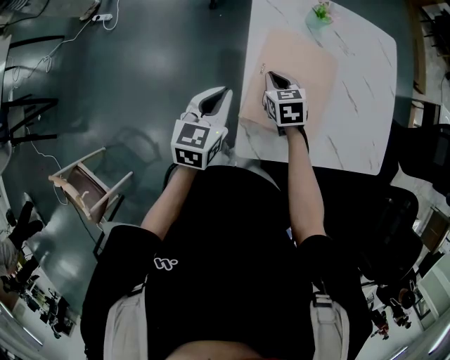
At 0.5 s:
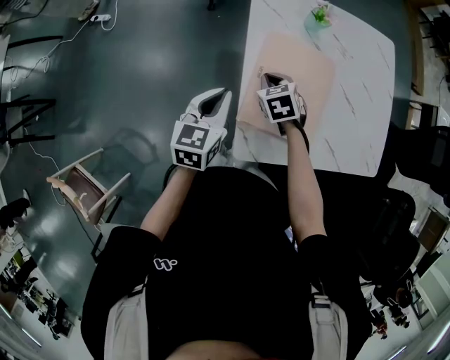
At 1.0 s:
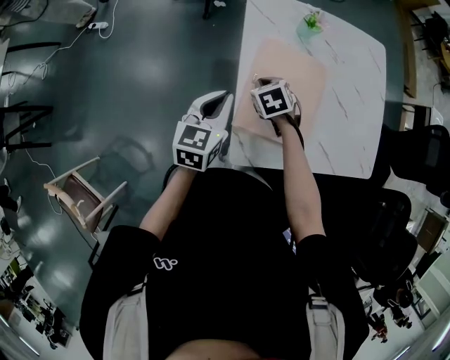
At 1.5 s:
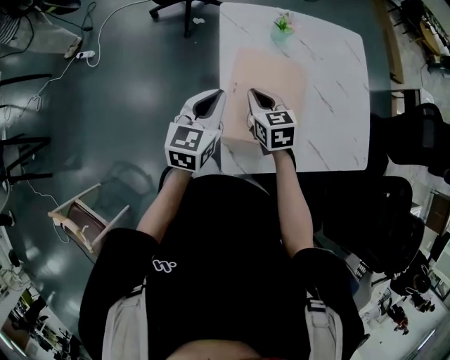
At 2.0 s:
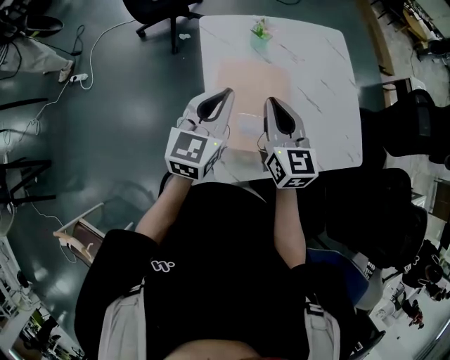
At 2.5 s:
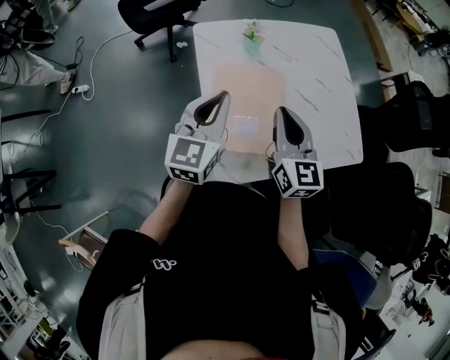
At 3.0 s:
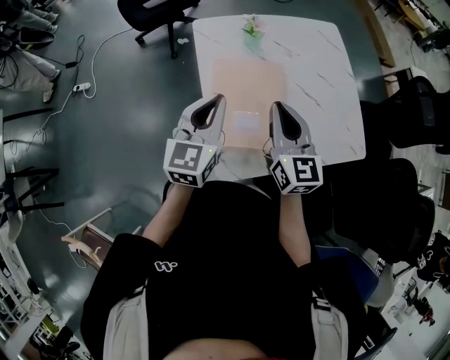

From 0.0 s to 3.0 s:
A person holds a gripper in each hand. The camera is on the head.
From 0.0 s to 1.5 s: The right gripper is displaced upward by approximately 5 cm, while the left gripper ends up about 10 cm from where it was.
From 1.5 s to 3.0 s: The right gripper shifts some 20 cm upward and to the right, and swivels approximately 30 degrees. Meanwhile the left gripper heads upward and to the right, covering approximately 10 cm.

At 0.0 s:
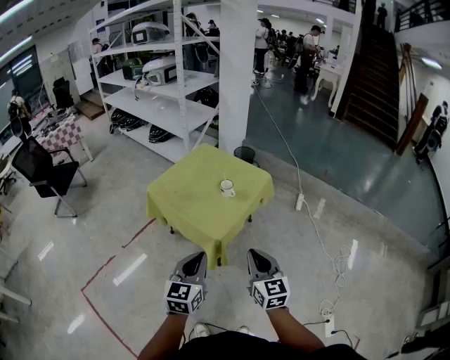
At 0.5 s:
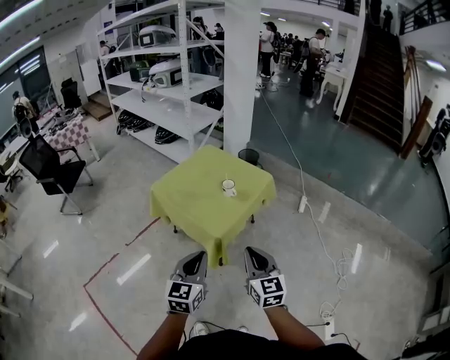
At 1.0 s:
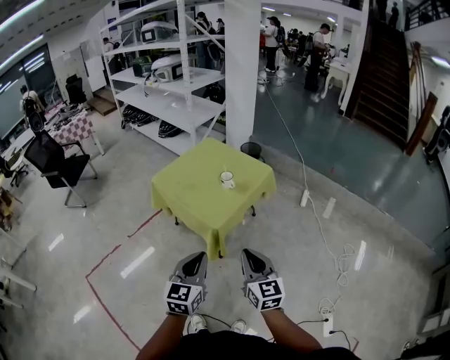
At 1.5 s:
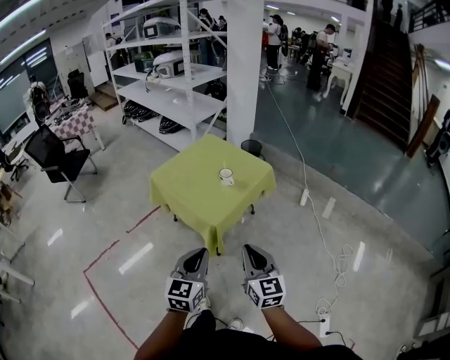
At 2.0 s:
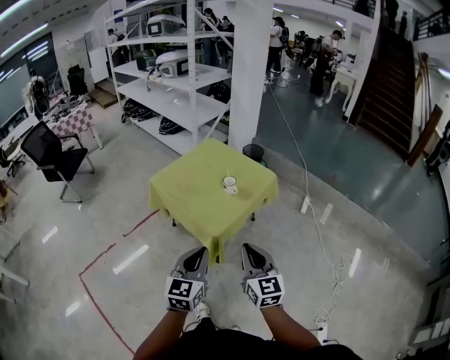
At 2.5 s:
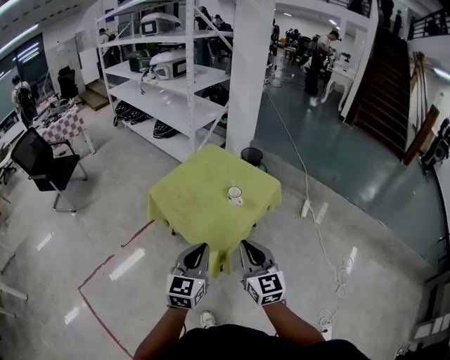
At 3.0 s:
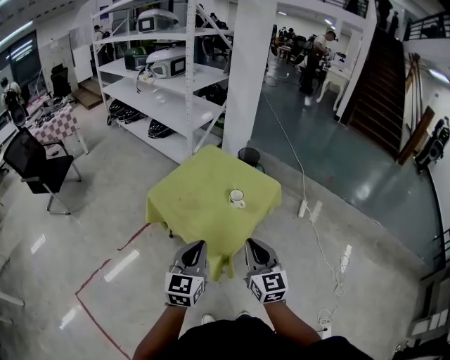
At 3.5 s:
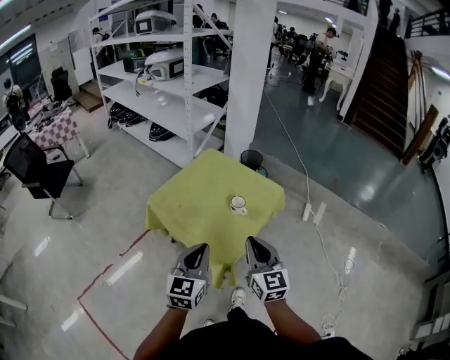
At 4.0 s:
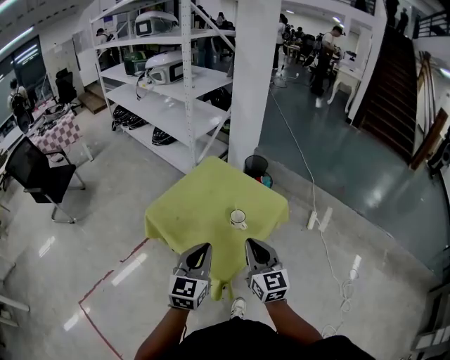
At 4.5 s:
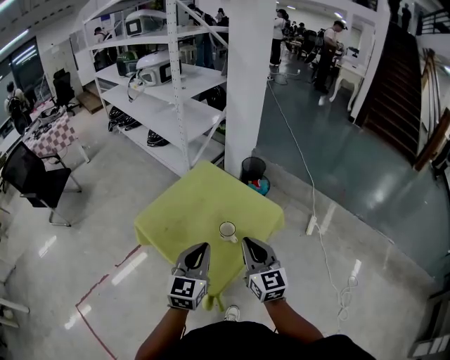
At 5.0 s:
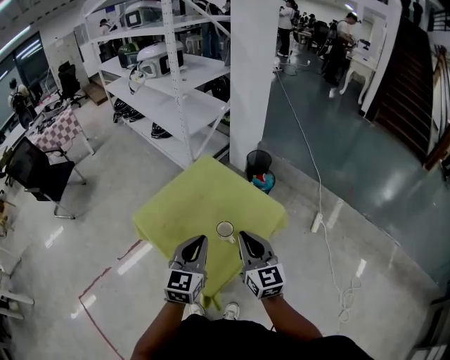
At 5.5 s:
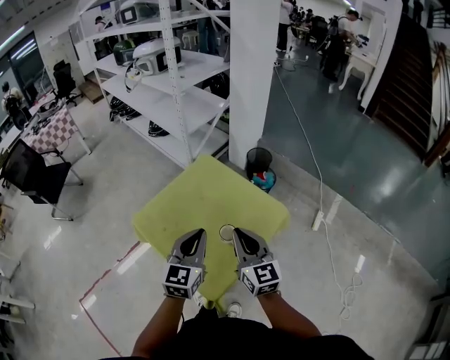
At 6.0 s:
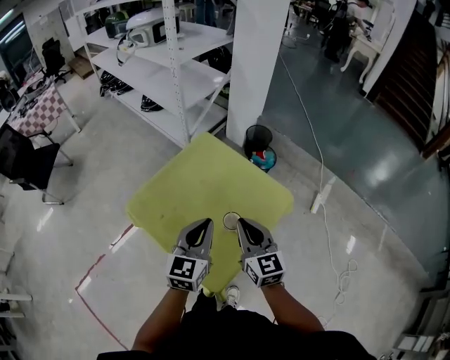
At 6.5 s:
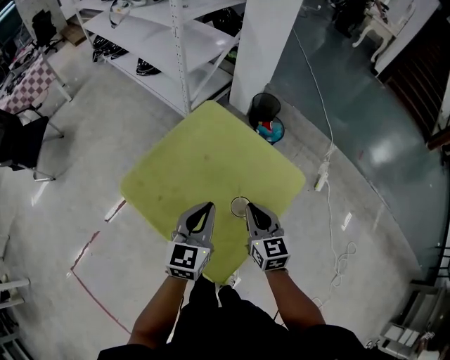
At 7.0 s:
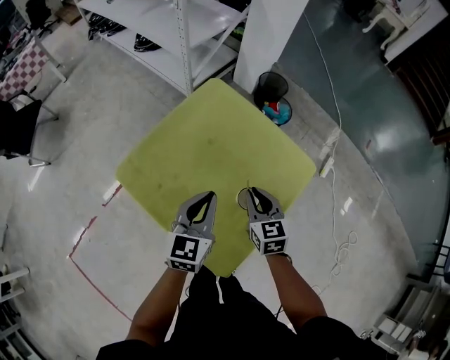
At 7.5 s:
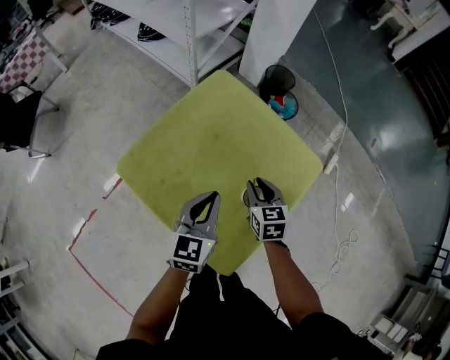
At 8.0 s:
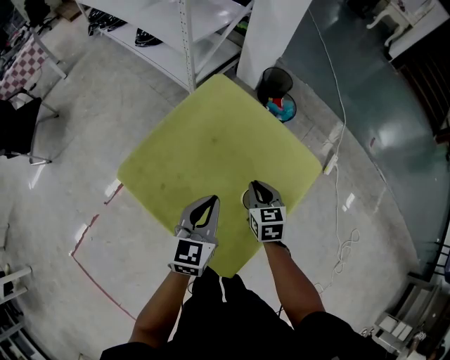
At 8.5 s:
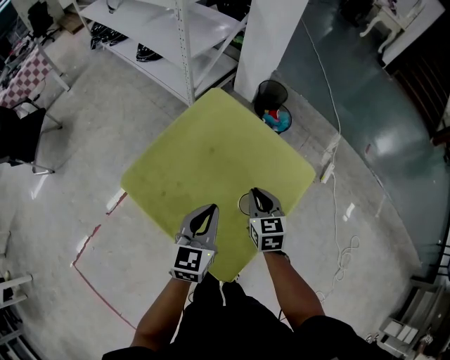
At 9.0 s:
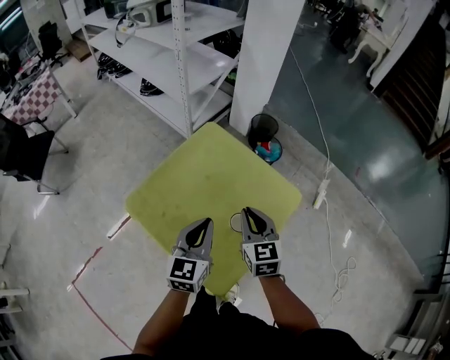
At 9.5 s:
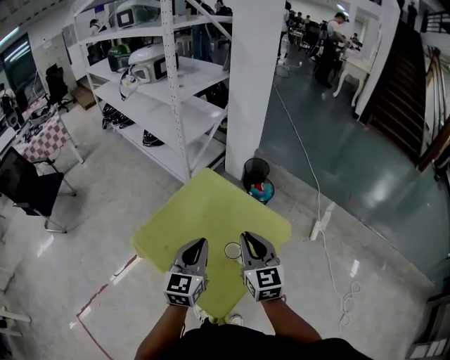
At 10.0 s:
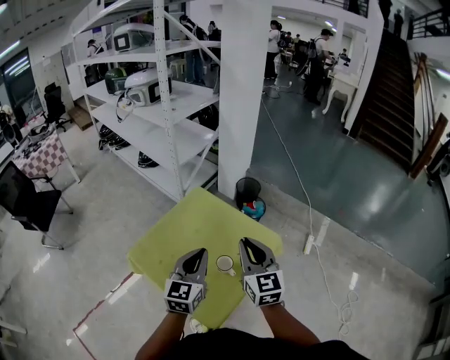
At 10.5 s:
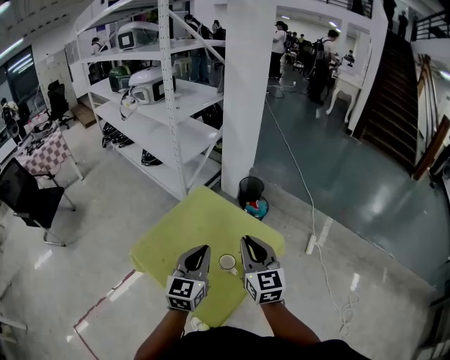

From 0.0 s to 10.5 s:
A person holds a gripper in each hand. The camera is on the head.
From 2.0 s to 4.0 s: Both grippers move forward, approximately 25 cm.
From 4.0 s to 6.5 s: The grippers both shift forward and downward by approximately 25 cm.
From 6.5 s to 8.5 s: The right gripper moves downward and forward, about 10 cm.
From 8.5 s to 10.5 s: The left gripper shifts approximately 15 cm upward. Meanwhile the right gripper shifts some 25 cm upward, and rotates about 30 degrees.

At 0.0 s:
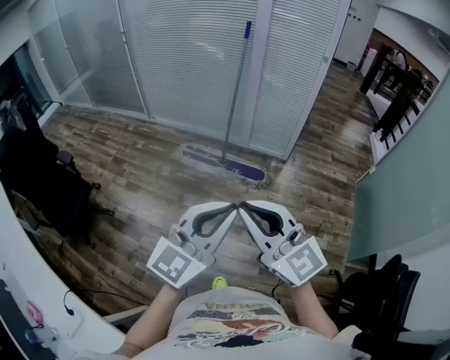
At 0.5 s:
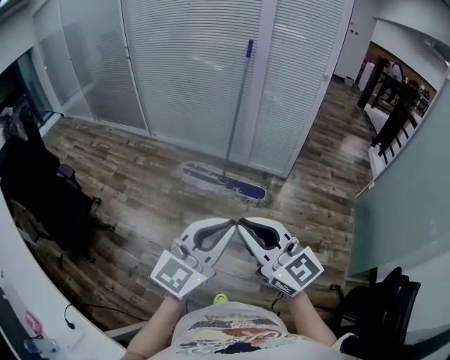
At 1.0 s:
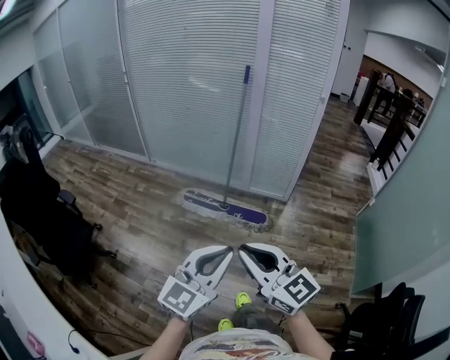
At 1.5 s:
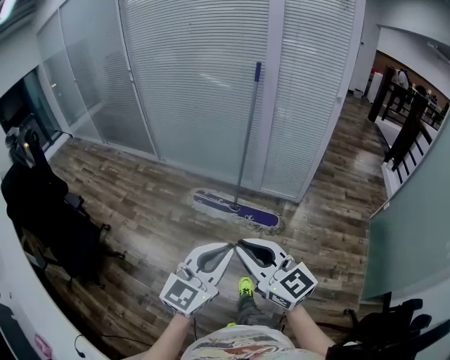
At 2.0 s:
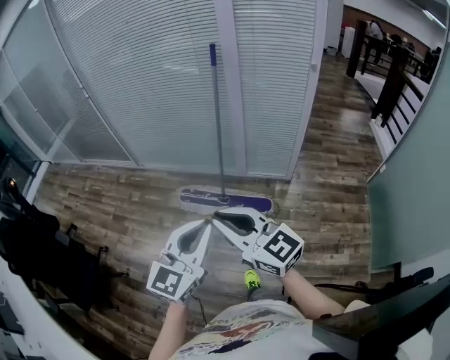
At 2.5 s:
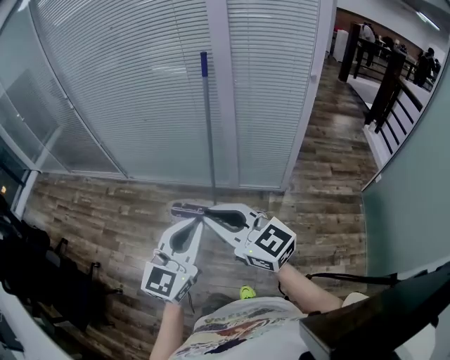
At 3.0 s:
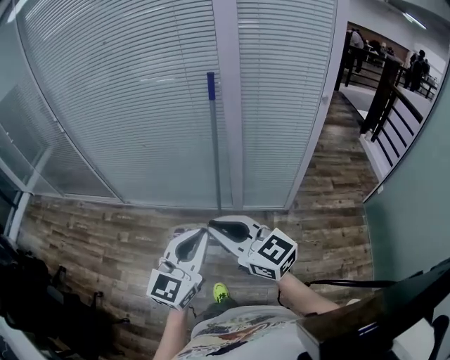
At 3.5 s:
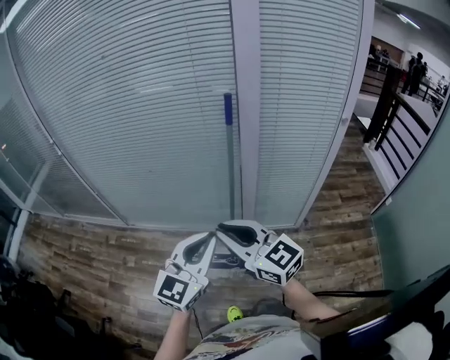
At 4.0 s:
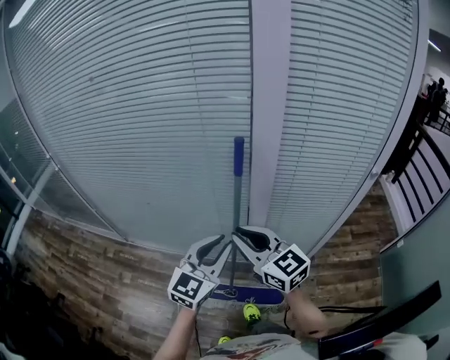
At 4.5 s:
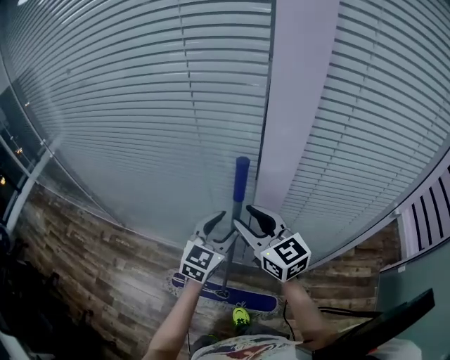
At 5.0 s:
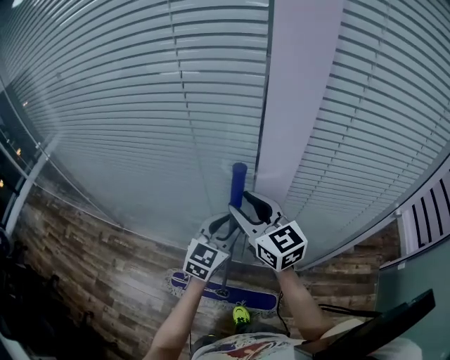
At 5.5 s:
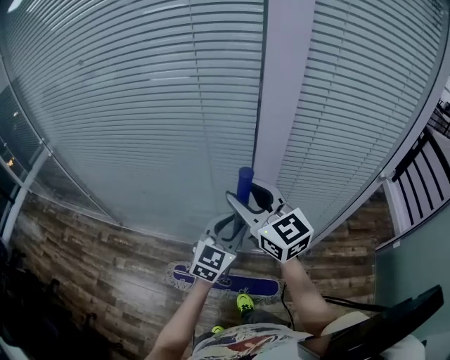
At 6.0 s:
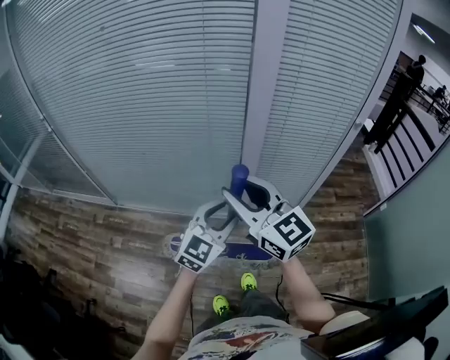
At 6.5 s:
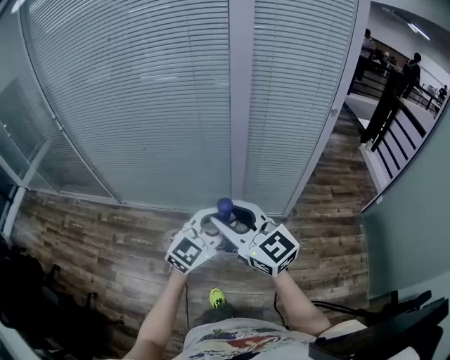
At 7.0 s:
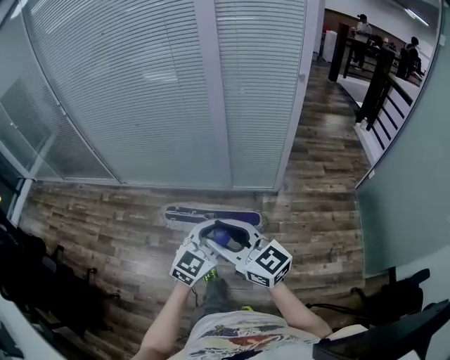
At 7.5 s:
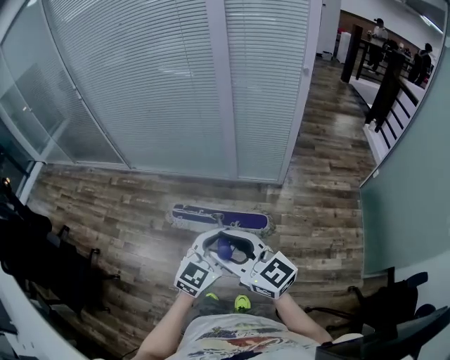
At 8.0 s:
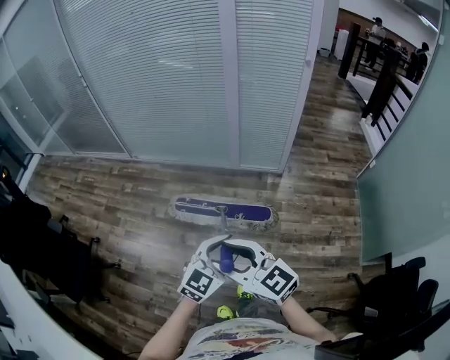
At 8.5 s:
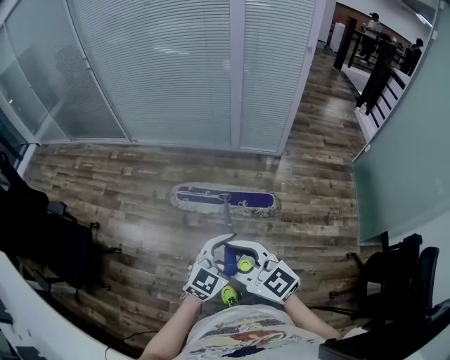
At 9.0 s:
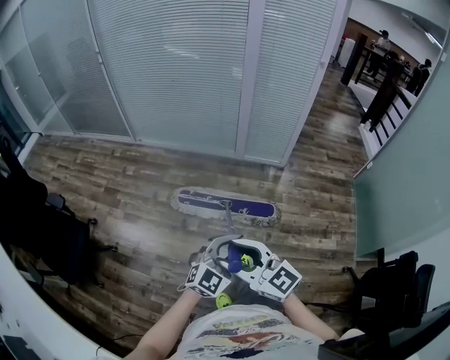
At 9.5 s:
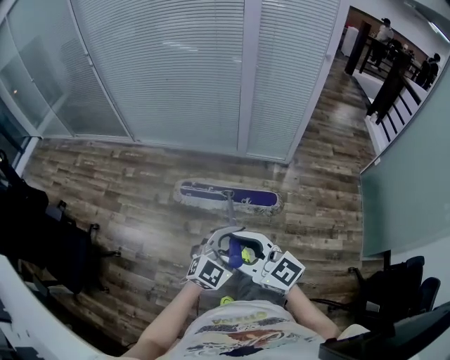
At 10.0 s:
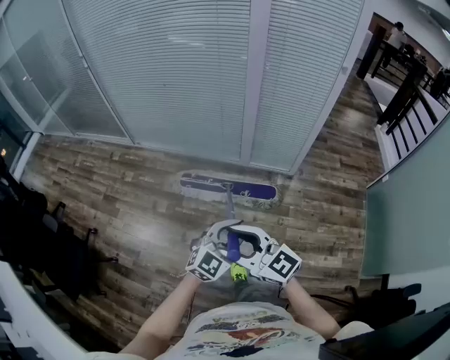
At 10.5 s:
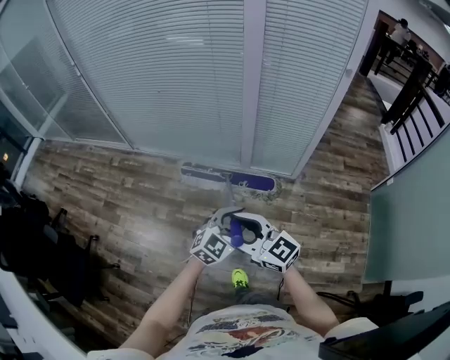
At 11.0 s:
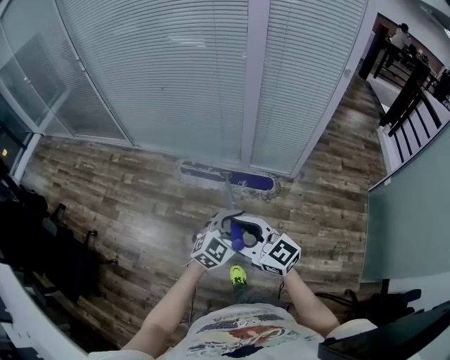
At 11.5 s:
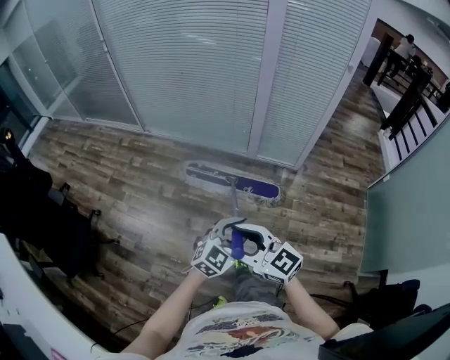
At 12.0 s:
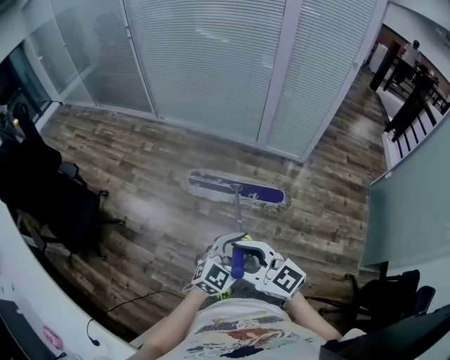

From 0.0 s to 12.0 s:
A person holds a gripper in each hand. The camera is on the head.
From 0.0 s to 2.0 s: Both grippers move forward, roughly 35 cm.
From 2.0 s to 4.0 s: The pair of grippers is taken forward, some 70 cm.
From 4.0 s to 6.0 s: The right gripper is displaced upward by approximately 5 cm, reaches roughly 25 cm forward, then returns, and opens; the left gripper moves about 25 cm forward and comes back, and opens up.
From 6.0 s to 8.0 s: The two grippers travel together, backward, approximately 70 cm. The right gripper rotates some 20 degrees.
From 8.0 s to 10.0 s: Both grippers travel together forward, roughly 20 cm.
From 10.0 s to 12.0 s: Both grippers travel together backward, roughly 30 cm.

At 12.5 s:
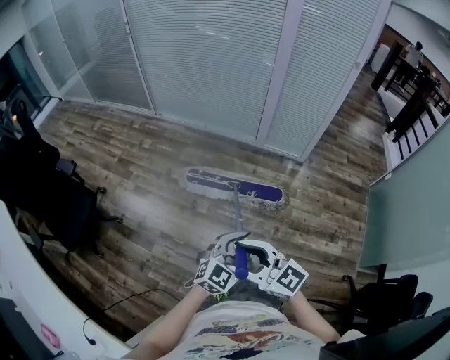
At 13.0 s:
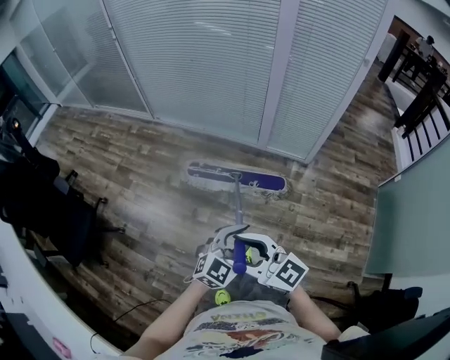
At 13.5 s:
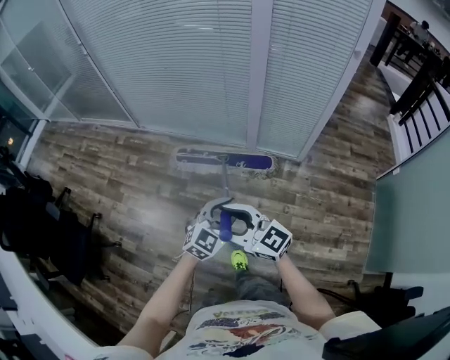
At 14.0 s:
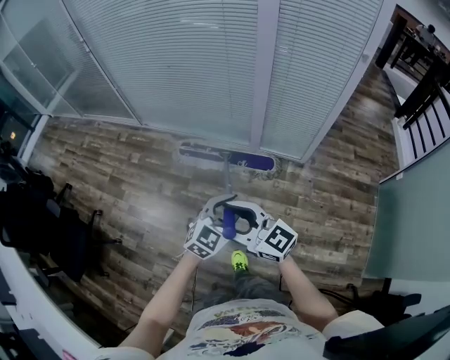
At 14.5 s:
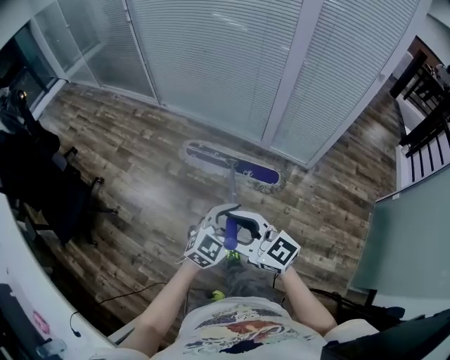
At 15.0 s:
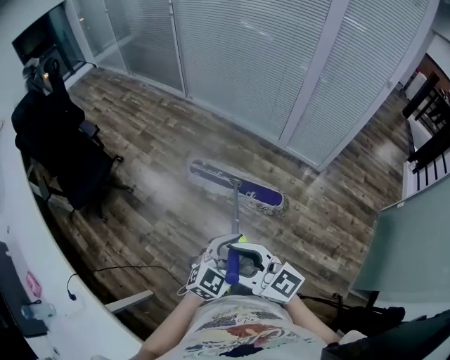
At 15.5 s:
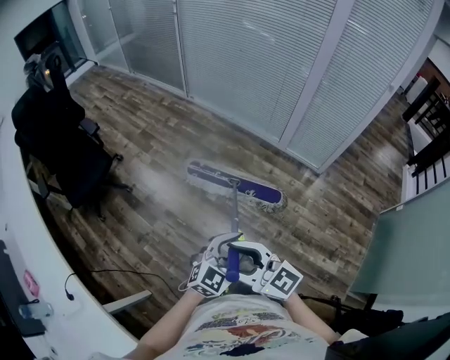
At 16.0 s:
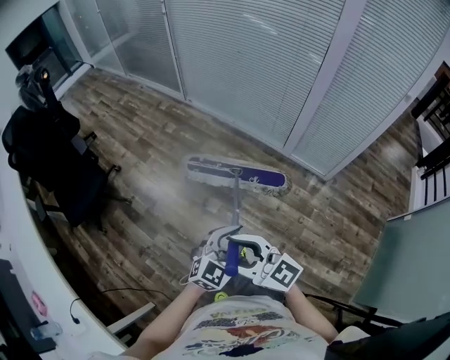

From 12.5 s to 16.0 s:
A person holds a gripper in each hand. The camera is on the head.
From 12.5 s to 14.5 s: The left gripper goes about 20 cm forward, while the right gripper is displaced forward and to the right by about 20 cm.
From 14.5 s to 16.0 s: Both grippers move to the left, approximately 10 cm. The right gripper moves about 25 cm backward and comes back, while the left gripper moves about 25 cm backward and comes back.
